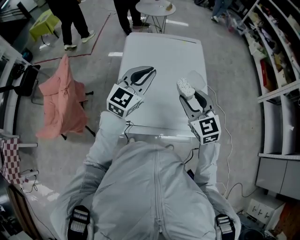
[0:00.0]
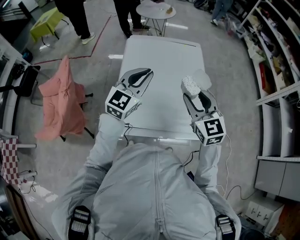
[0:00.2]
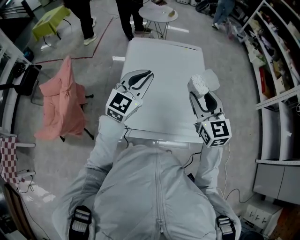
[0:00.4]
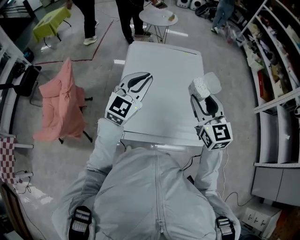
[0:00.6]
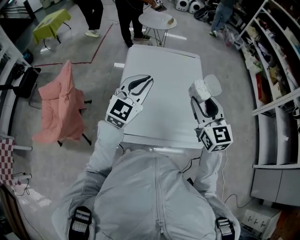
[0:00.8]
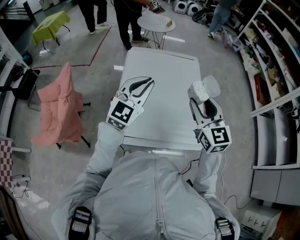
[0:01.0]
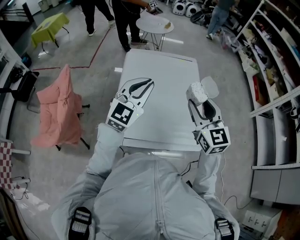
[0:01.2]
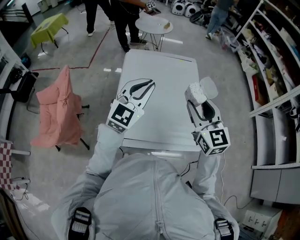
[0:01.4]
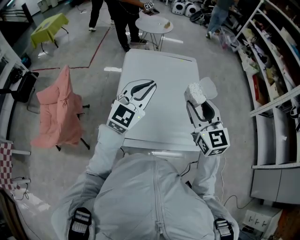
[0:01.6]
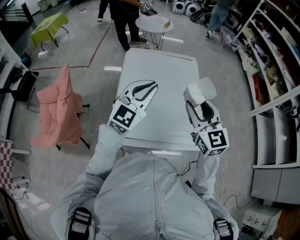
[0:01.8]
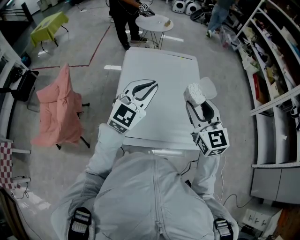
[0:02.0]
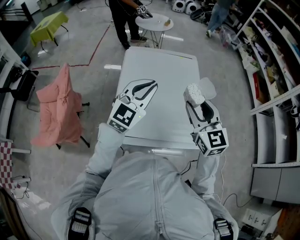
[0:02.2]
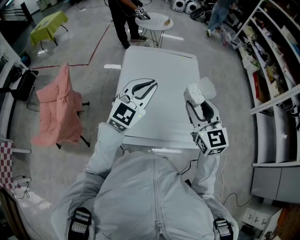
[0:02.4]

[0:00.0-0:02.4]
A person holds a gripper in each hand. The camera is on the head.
0:00.0 to 0:01.2: The right gripper shifts approximately 10 cm upward, while the left gripper moves upward, some 5 cm.
0:01.2 to 0:02.4: The grippers stay close to where they were, moving slightly.

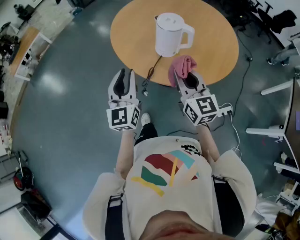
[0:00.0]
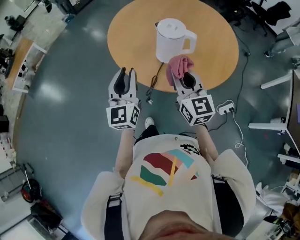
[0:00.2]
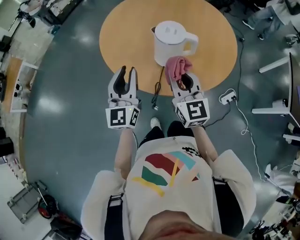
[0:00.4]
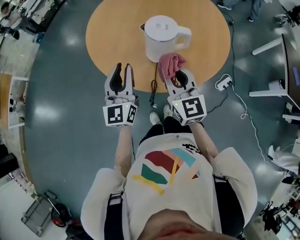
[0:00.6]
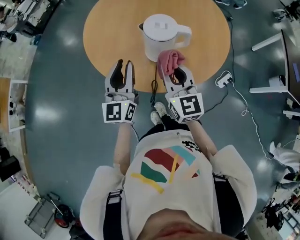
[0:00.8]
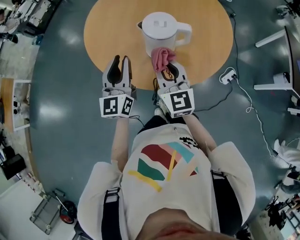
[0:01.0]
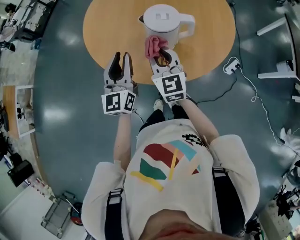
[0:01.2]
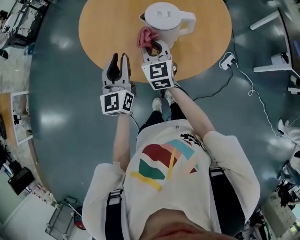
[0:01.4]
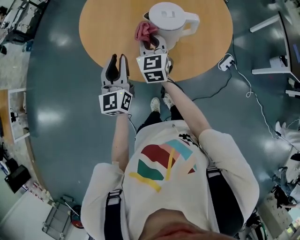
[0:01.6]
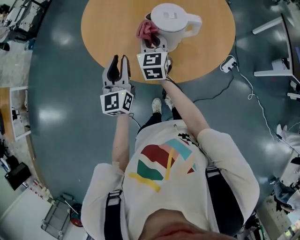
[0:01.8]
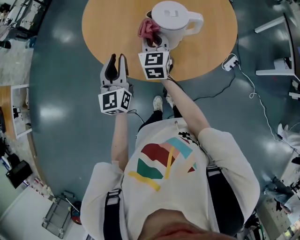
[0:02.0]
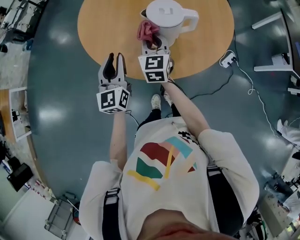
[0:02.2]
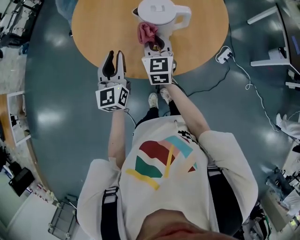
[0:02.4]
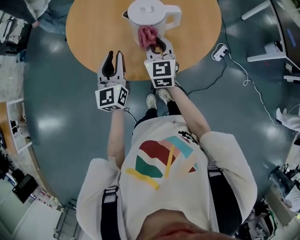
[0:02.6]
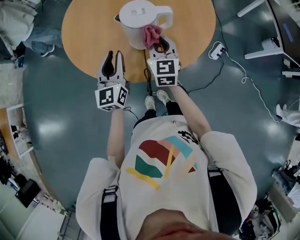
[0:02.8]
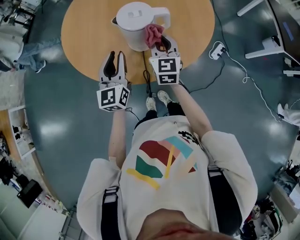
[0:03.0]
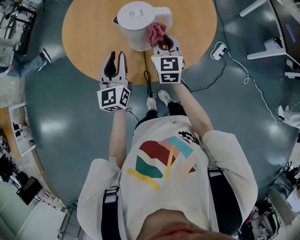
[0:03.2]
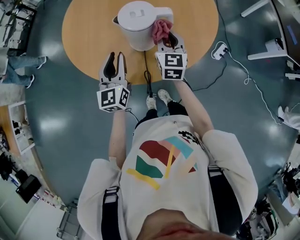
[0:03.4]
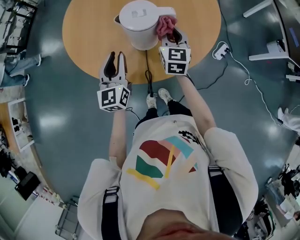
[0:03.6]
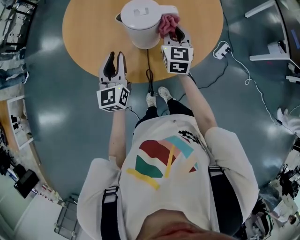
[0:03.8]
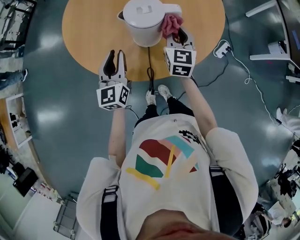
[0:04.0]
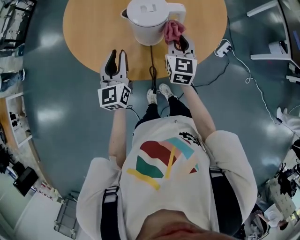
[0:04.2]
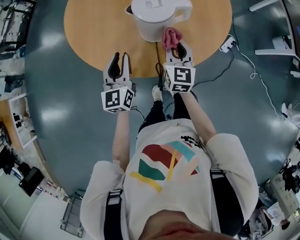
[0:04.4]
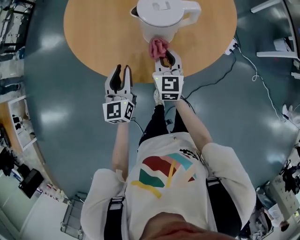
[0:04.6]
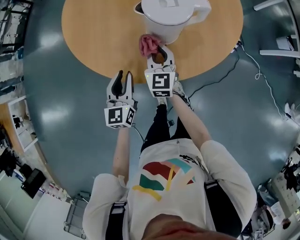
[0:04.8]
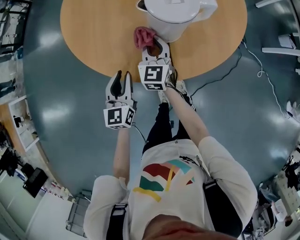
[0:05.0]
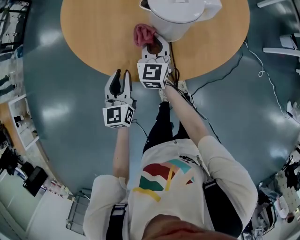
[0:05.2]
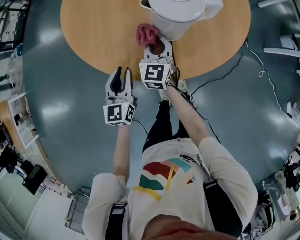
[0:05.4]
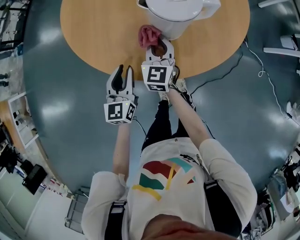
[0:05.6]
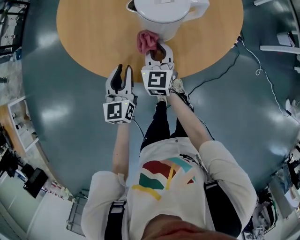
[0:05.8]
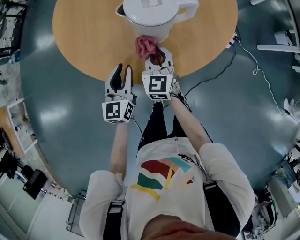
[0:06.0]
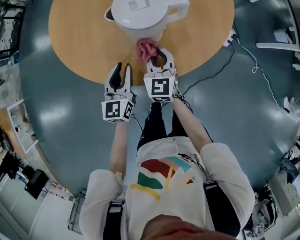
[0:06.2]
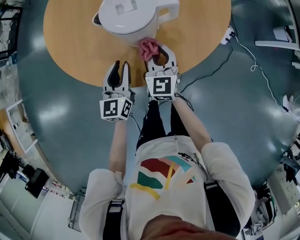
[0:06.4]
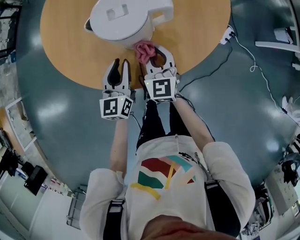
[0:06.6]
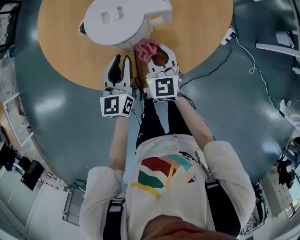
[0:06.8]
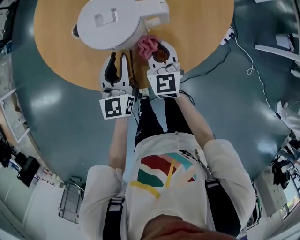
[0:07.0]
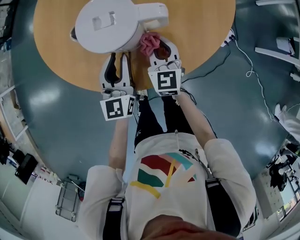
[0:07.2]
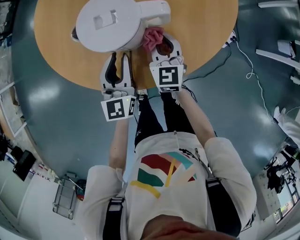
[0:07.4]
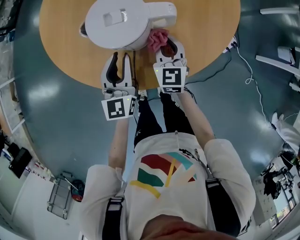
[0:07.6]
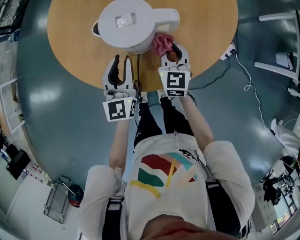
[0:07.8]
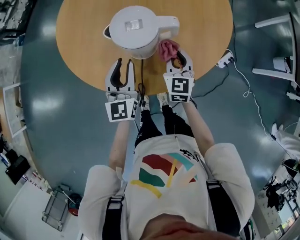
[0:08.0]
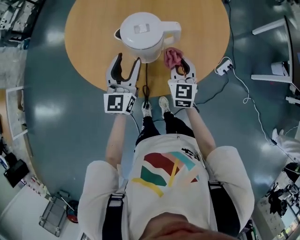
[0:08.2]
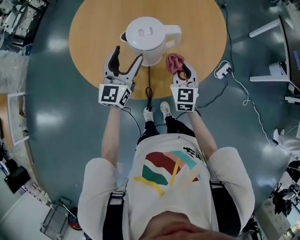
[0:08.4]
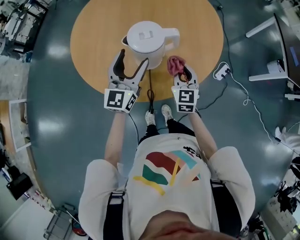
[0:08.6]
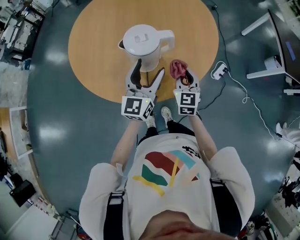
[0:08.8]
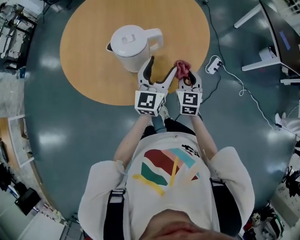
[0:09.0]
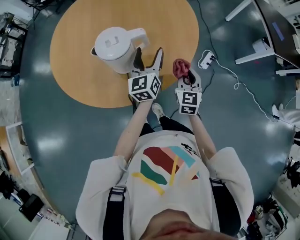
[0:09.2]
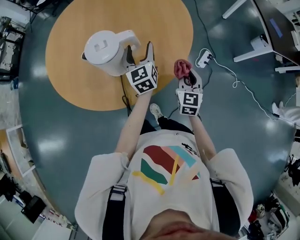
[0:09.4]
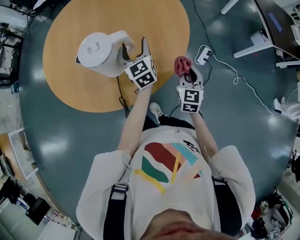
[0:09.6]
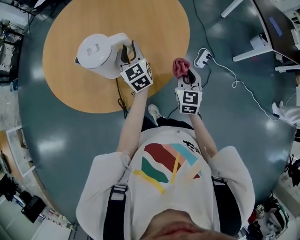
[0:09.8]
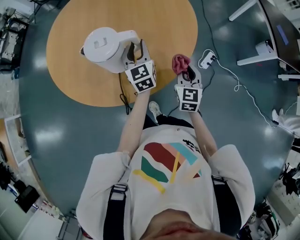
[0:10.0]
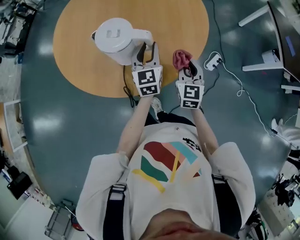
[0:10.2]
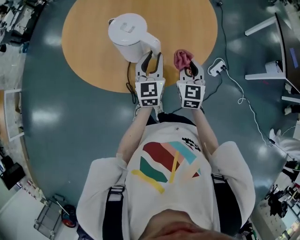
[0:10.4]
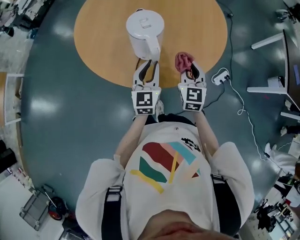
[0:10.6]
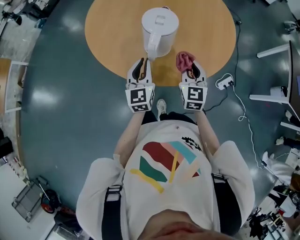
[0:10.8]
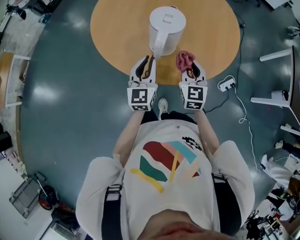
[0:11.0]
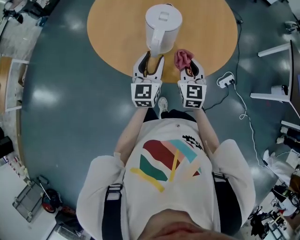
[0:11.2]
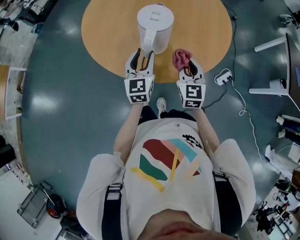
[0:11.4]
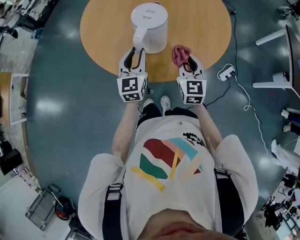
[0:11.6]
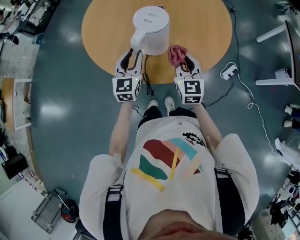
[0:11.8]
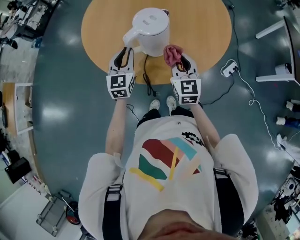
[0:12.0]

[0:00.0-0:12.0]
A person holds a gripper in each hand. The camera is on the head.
0:00.0 to 0:01.6: The right gripper ends up roughly 30 cm from where it was, and changes its angle by some 40 degrees. The left gripper ends up roughly 25 cm from where it was, and turns by roughly 30 degrees.
0:01.6 to 0:03.0: The right gripper is displaced to the right by about 15 cm. Meanwhile the left gripper goes roughly 10 cm to the right.
0:03.0 to 0:04.4: Both grippers travel together downward, about 5 cm.
0:04.4 to 0:06.0: The left gripper is displaced downward by some 10 cm, while the right gripper shifts approximately 10 cm to the left and downward.
0:06.0 to 0:07.6: The two grippers go approximately 15 cm to the right and forward.
0:07.6 to 0:09.0: The right gripper moves to the right, backward and upward, approximately 15 cm; the left gripper travels to the right and upward by roughly 15 cm, changes its angle by about 30 degrees, and opens its fingers.
0:09.0 to 0:10.4: The right gripper reaches about 10 cm to the right, then returns, while the left gripper moves downward, about 5 cm, travels forward and back again, some 10 cm each way, rotates about 20 degrees, and closes its fingers.
0:10.4 to 0:12.0: The grippers both shift to the left by approximately 20 cm.

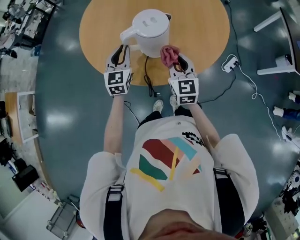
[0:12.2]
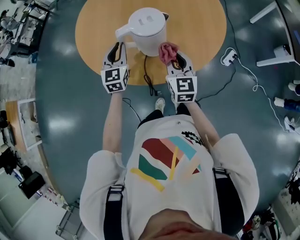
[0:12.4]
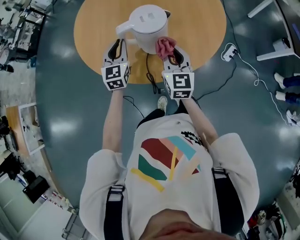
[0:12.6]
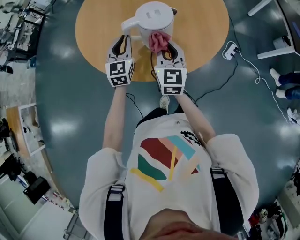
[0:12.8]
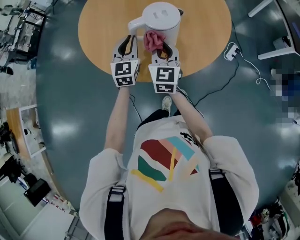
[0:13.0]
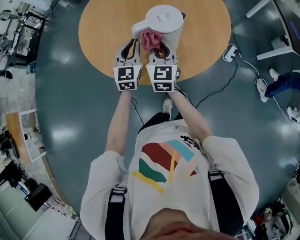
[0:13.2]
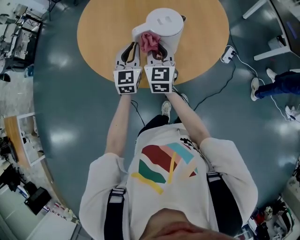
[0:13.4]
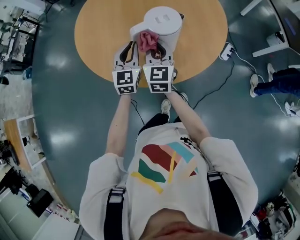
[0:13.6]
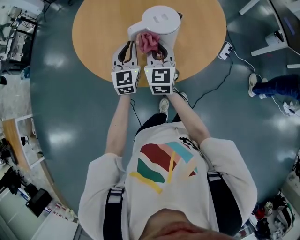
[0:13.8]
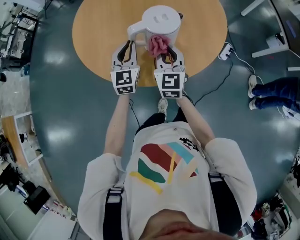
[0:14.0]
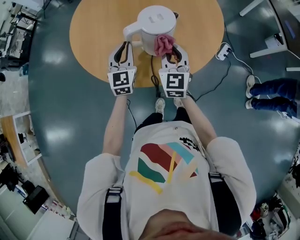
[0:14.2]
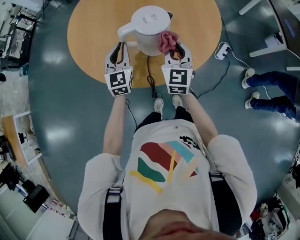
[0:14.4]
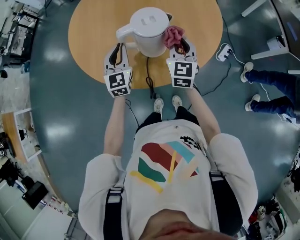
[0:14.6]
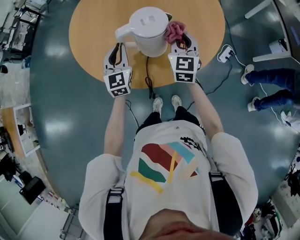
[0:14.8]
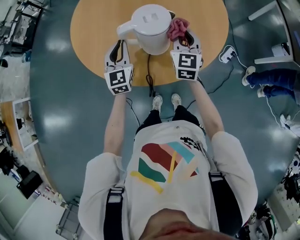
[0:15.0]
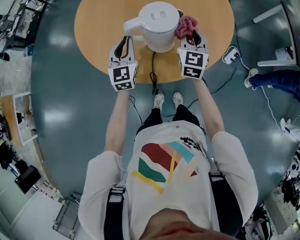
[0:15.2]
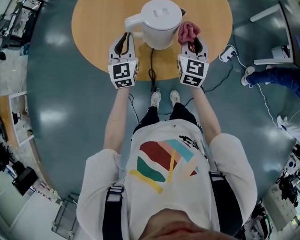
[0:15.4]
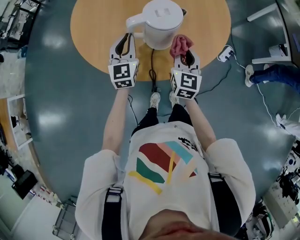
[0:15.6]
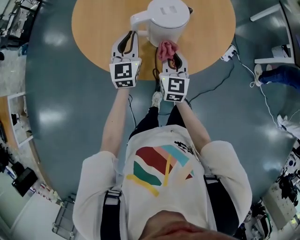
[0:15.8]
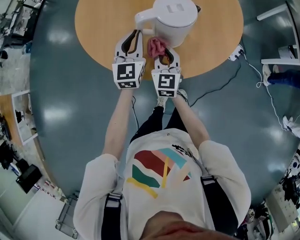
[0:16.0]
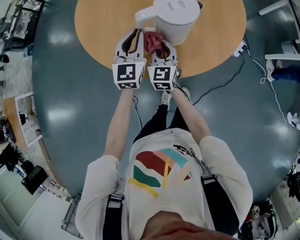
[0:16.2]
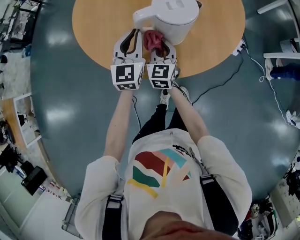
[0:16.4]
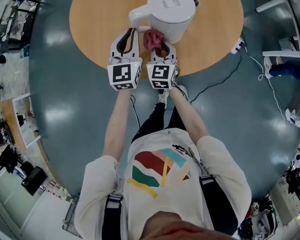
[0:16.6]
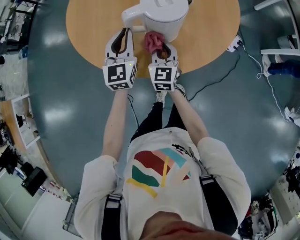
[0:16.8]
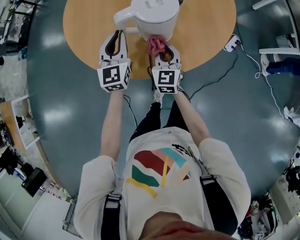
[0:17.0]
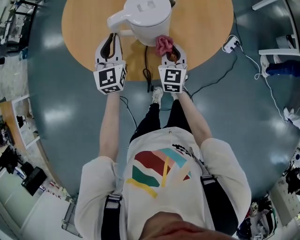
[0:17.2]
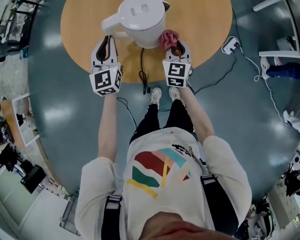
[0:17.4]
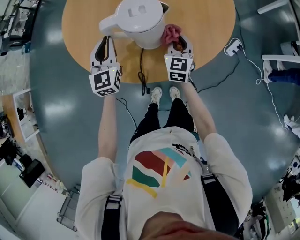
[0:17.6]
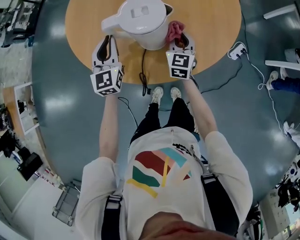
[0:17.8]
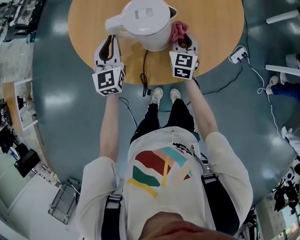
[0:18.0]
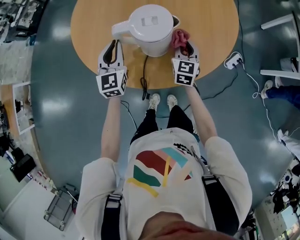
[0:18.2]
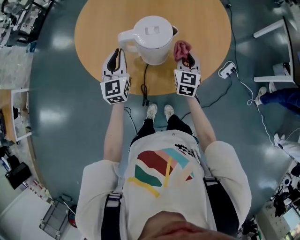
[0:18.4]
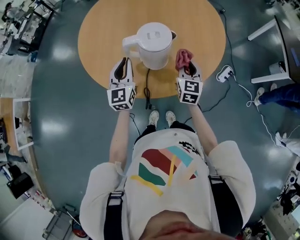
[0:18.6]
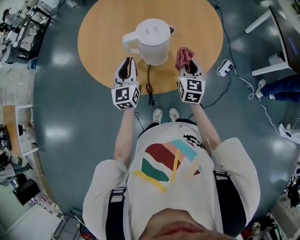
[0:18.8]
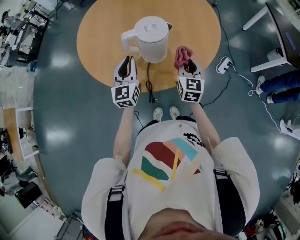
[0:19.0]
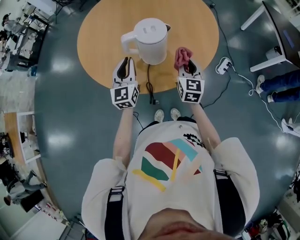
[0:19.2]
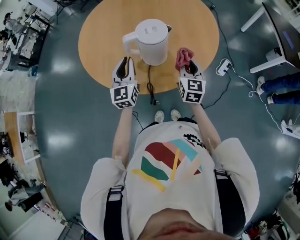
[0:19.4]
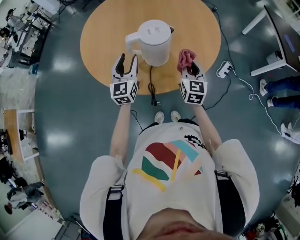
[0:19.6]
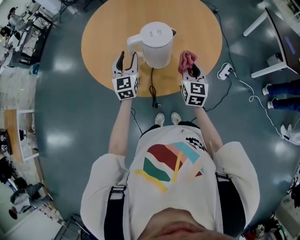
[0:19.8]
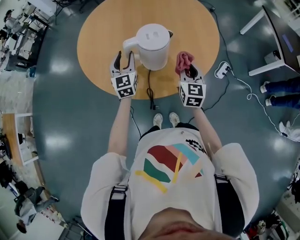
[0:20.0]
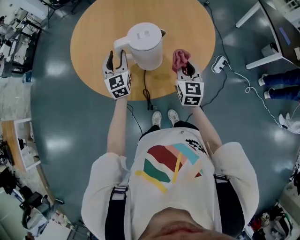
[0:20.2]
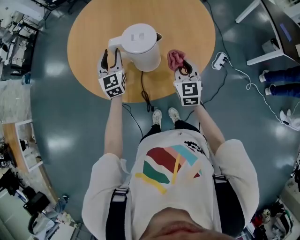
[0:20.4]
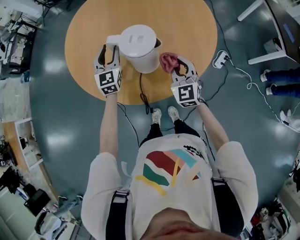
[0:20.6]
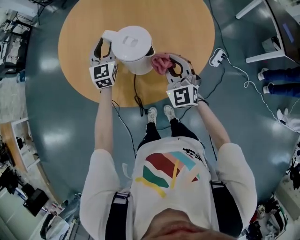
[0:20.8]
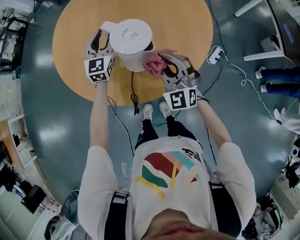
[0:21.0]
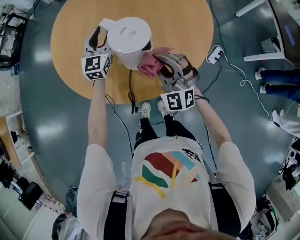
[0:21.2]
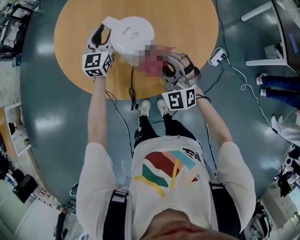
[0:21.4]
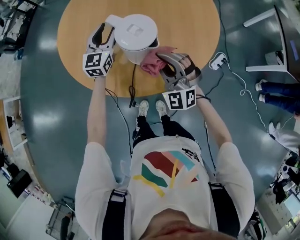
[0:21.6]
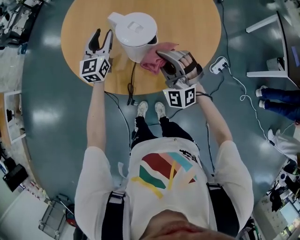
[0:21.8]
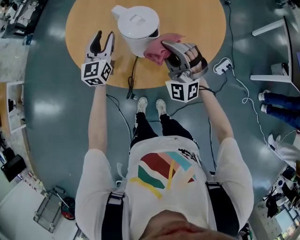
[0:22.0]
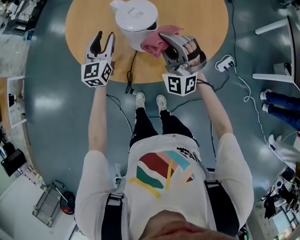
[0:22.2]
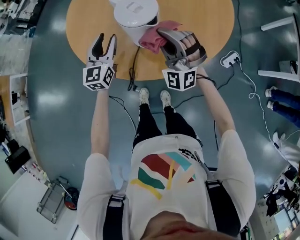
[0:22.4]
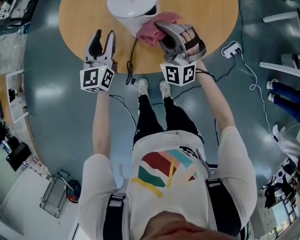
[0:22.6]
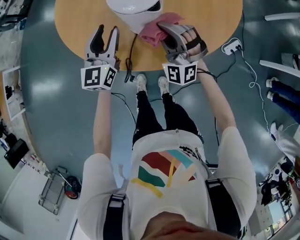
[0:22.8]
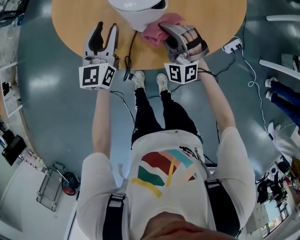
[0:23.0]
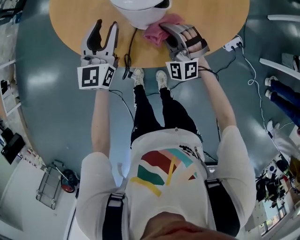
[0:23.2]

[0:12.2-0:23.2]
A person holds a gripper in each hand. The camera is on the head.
0:12.2 to 0:13.8: The right gripper moves to the left, roughly 15 cm.
0:13.8 to 0:15.4: The right gripper heads to the right, covering roughly 15 cm.
0:15.4 to 0:17.0: The right gripper shifts about 15 cm downward and to the left.
0:17.0 to 0:18.4: The right gripper shifts roughly 15 cm to the right and forward.
0:18.4 to 0:20.0: The left gripper opens. The right gripper shifts about 10 cm backward and upward.
0:20.0 to 0:21.6: The right gripper shifts by about 5 cm, and rolls counterclockwise, seen from behind, by some 60 degrees. The left gripper travels forward by approximately 10 cm.
0:21.6 to 0:23.2: The left gripper goes some 15 cm backward. Meanwhile the right gripper goes about 15 cm downward.
